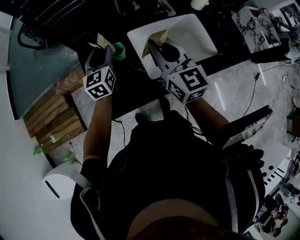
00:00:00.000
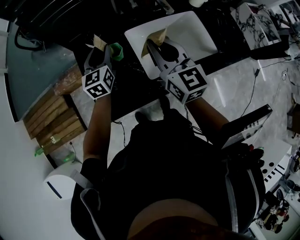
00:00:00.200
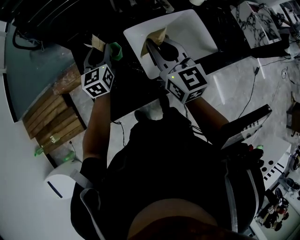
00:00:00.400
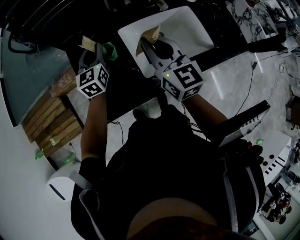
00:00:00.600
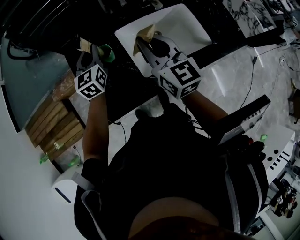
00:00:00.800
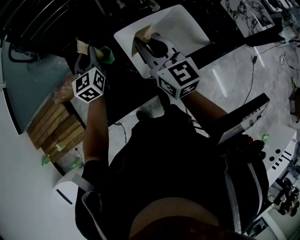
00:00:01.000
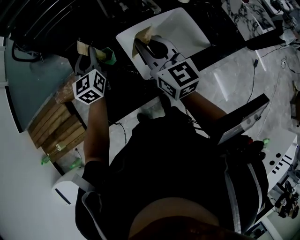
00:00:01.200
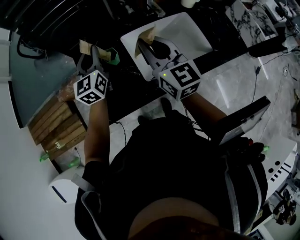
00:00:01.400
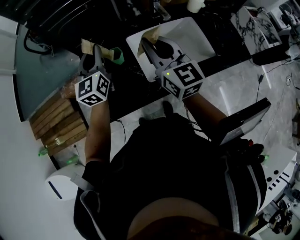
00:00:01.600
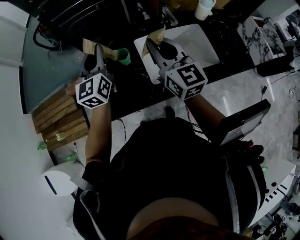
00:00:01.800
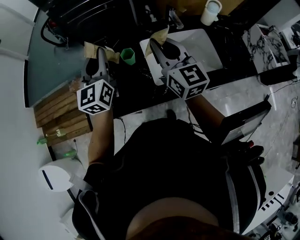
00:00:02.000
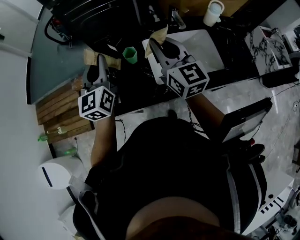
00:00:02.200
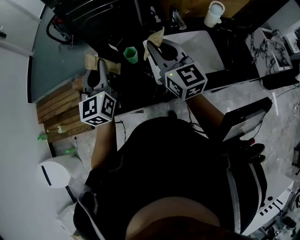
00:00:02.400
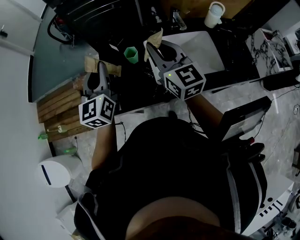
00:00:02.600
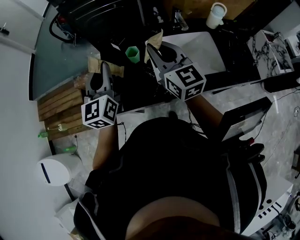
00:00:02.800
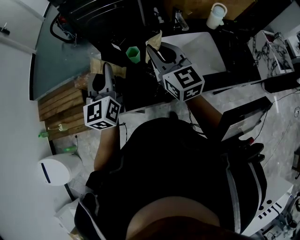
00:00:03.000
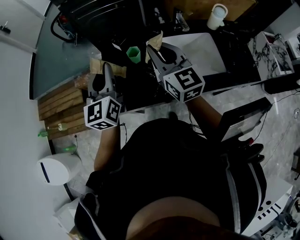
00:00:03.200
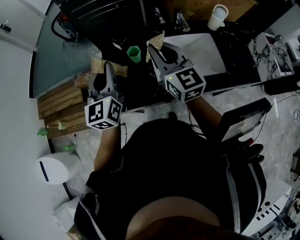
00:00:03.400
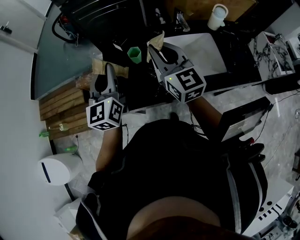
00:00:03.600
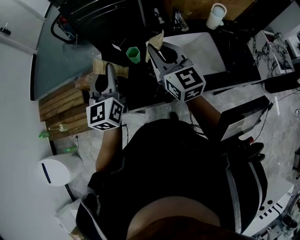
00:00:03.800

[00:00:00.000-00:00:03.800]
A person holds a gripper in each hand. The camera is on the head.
00:00:00.000 to 00:00:01.200: The left gripper closes up.
00:00:01.200 to 00:00:02.600: The right gripper changes place by approximately 5 cm. The left gripper moves backward, upward and to the left, some 20 cm.
00:00:02.600 to 00:00:03.800: There are only small adjustments of the grippers.

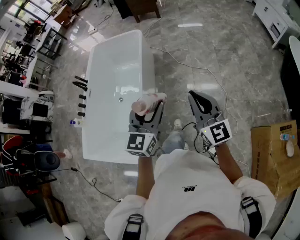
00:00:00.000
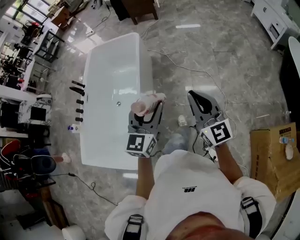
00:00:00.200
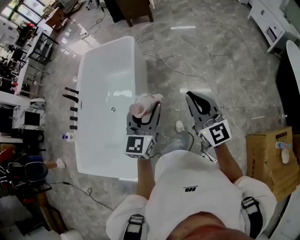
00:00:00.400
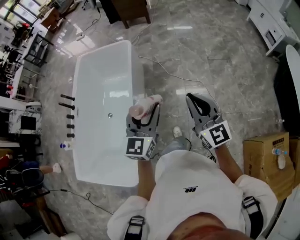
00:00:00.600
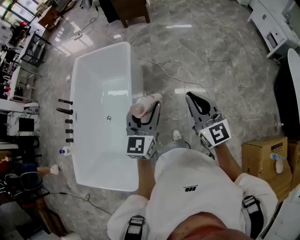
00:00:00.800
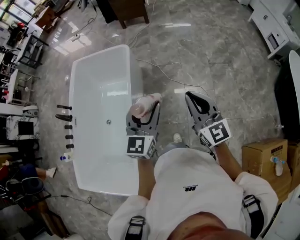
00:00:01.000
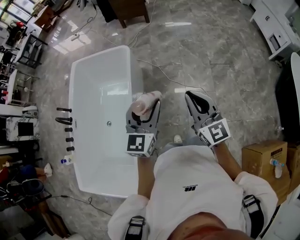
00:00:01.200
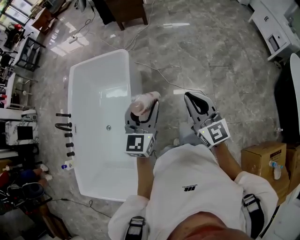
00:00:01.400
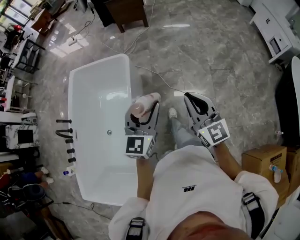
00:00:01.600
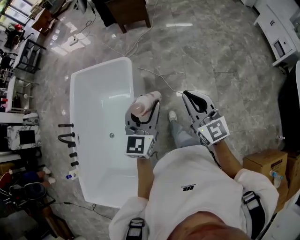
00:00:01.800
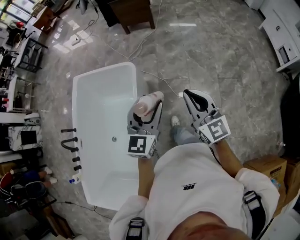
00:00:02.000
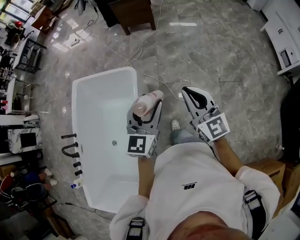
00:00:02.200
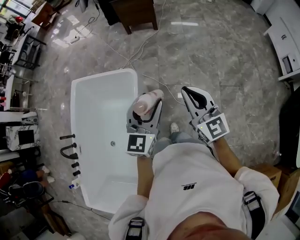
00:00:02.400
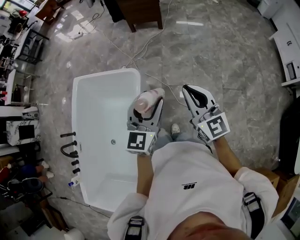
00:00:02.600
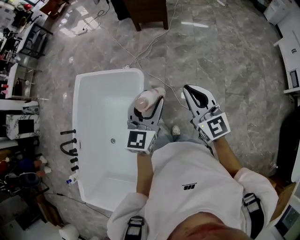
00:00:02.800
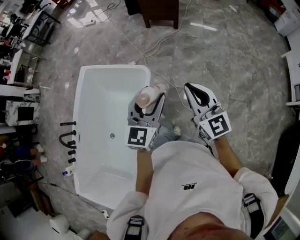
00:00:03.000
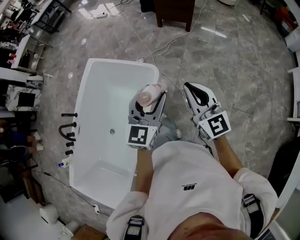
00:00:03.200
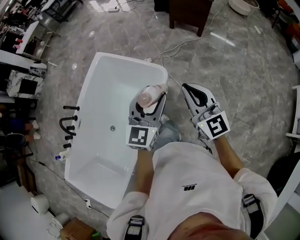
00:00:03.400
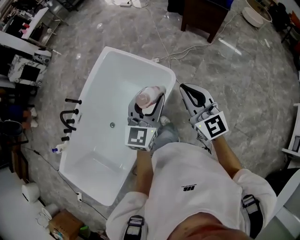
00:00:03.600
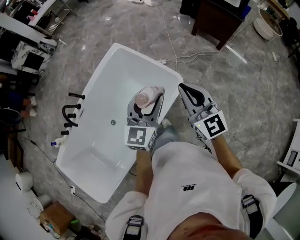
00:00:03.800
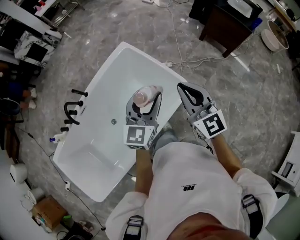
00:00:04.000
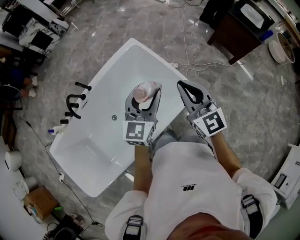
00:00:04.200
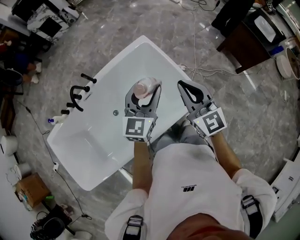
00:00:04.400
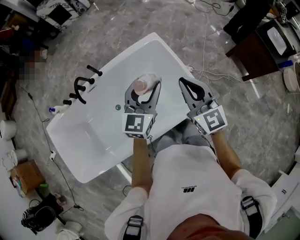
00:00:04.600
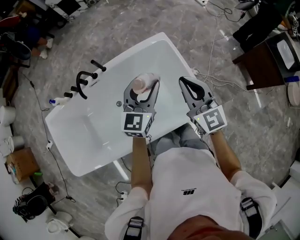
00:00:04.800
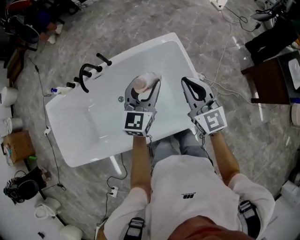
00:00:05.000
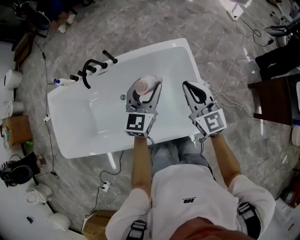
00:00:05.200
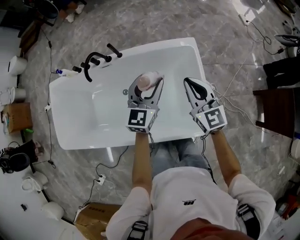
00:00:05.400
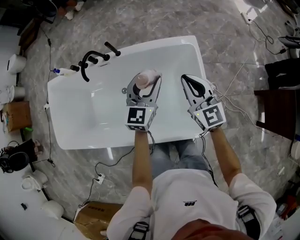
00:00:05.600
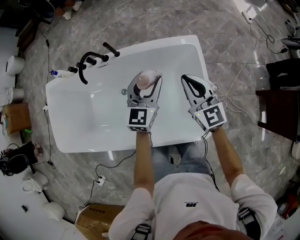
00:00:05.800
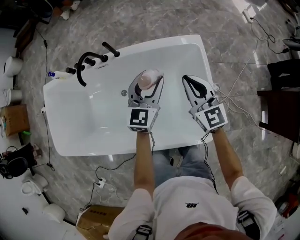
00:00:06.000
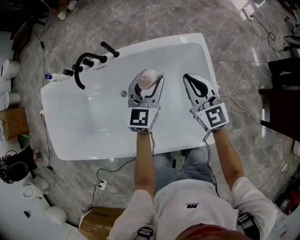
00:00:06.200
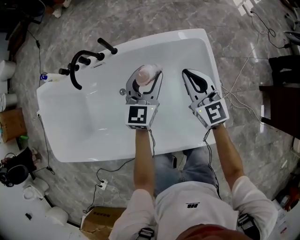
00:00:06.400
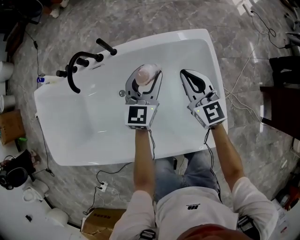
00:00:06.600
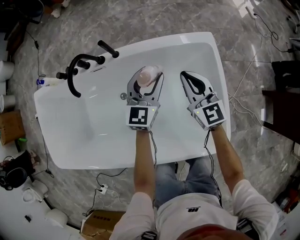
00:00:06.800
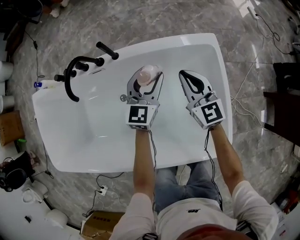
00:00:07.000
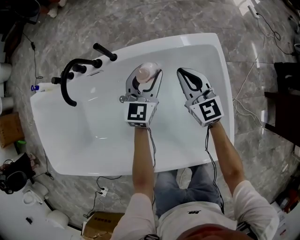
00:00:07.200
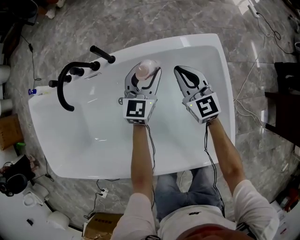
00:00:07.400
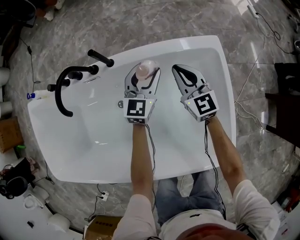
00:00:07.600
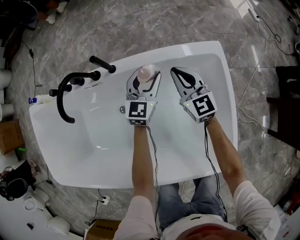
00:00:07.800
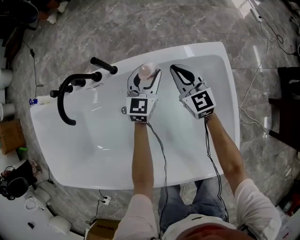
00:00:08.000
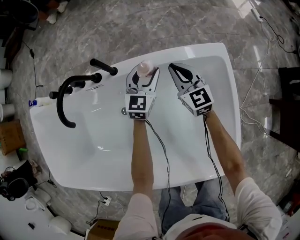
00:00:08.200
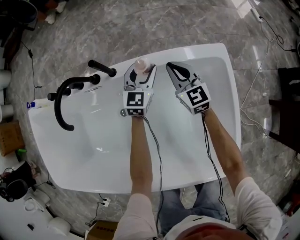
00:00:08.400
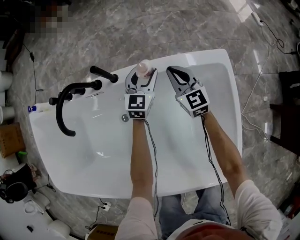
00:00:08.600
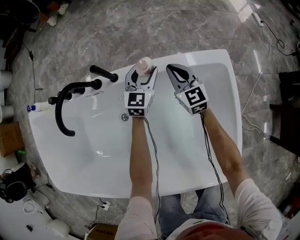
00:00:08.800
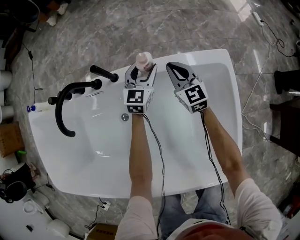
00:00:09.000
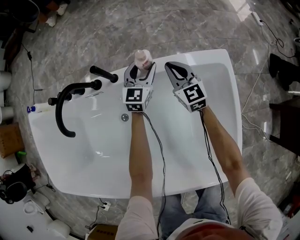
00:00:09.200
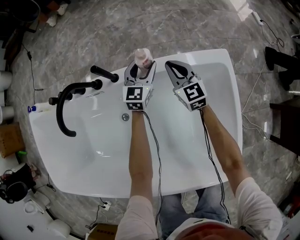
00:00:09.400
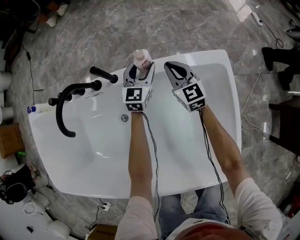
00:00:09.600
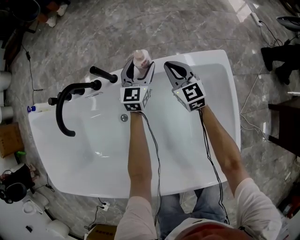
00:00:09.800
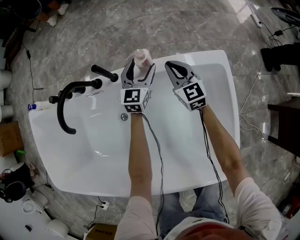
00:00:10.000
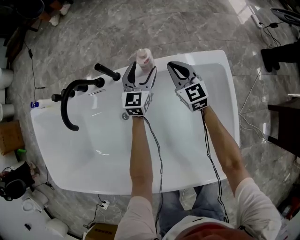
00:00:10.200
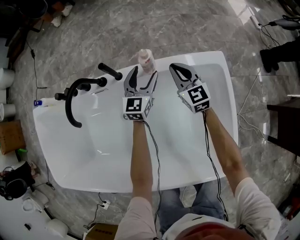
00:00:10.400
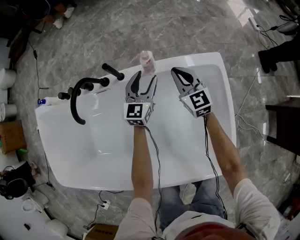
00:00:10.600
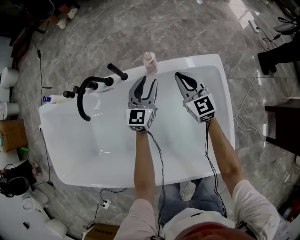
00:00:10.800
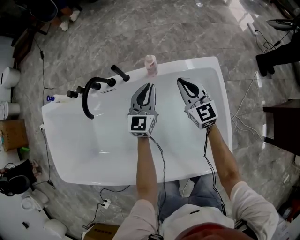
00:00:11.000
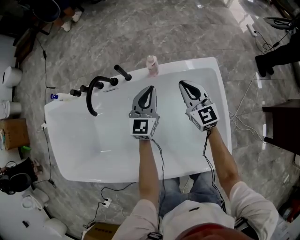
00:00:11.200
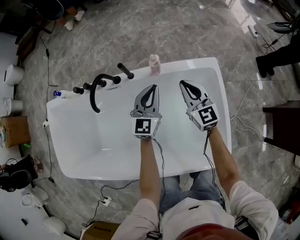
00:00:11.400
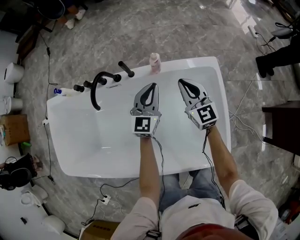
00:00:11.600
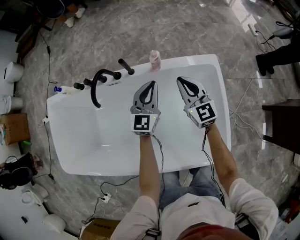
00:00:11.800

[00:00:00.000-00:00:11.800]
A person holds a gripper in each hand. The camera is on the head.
00:00:00.000 to 00:00:01.400: Both grippers are carried forward, some 40 cm.
00:00:01.400 to 00:00:03.000: The two grippers travel together, forward, about 40 cm.
00:00:03.000 to 00:00:04.400: Both grippers are carried some 40 cm. The left gripper changes its angle by some 40 degrees. The right gripper turns by some 40 degrees.
00:00:04.400 to 00:00:06.000: The left gripper moves some 30 cm, and swivels some 30 degrees. The right gripper changes place by approximately 30 cm, and changes its angle by about 30 degrees.
00:00:06.000 to 00:00:07.400: The right gripper heads downward, forward and to the left, covering about 25 cm. Meanwhile the left gripper shifts about 25 cm downward and forward.
00:00:07.400 to 00:00:08.800: The two grippers go some 15 cm forward and downward.
00:00:08.800 to 00:00:10.400: The two grippers go about 5 cm upward.
00:00:10.400 to 00:00:11.800: The two grippers go approximately 20 cm upward and backward. The left gripper closes its fingers.

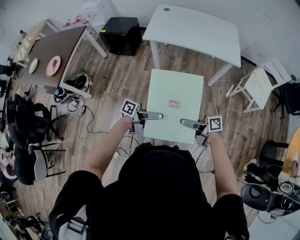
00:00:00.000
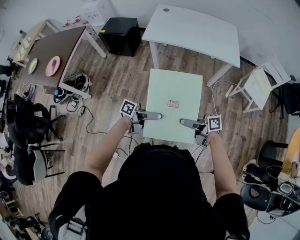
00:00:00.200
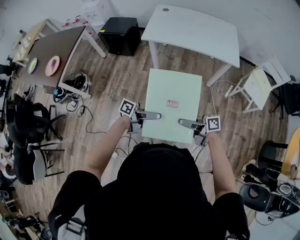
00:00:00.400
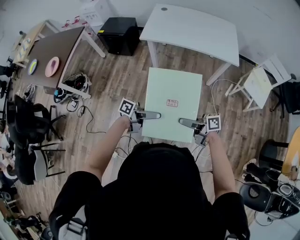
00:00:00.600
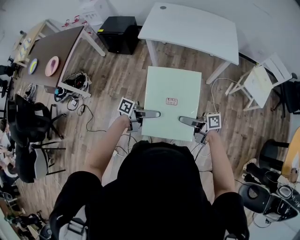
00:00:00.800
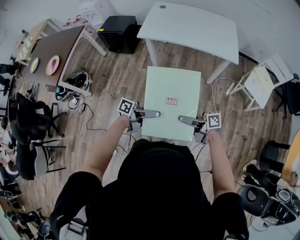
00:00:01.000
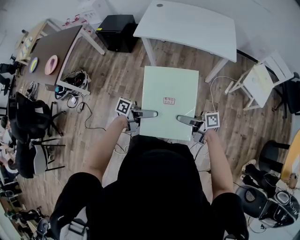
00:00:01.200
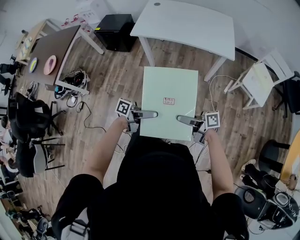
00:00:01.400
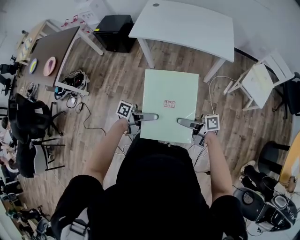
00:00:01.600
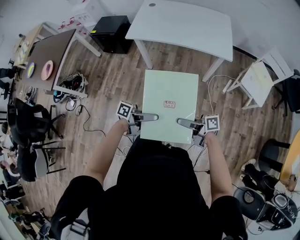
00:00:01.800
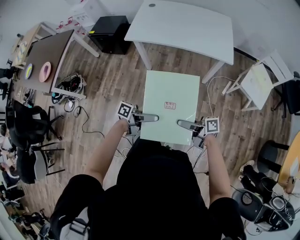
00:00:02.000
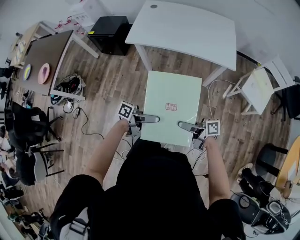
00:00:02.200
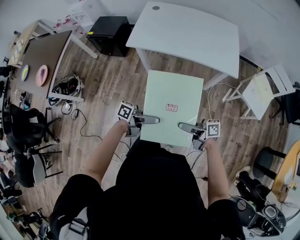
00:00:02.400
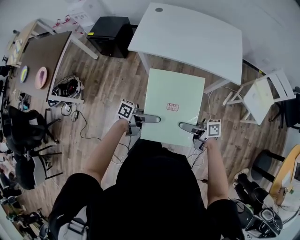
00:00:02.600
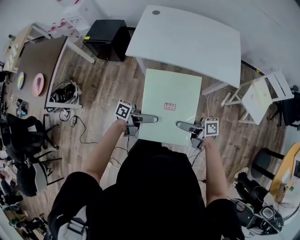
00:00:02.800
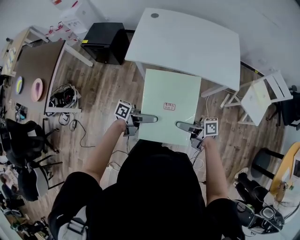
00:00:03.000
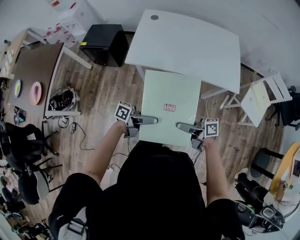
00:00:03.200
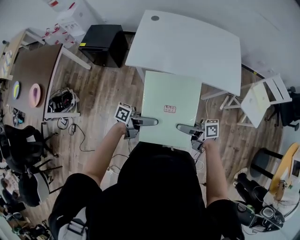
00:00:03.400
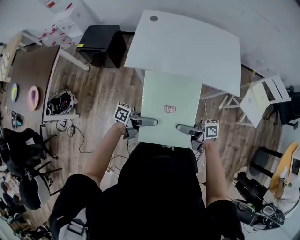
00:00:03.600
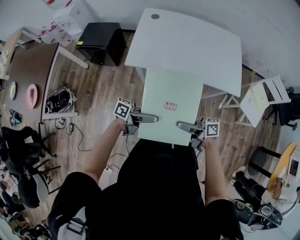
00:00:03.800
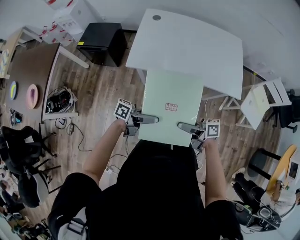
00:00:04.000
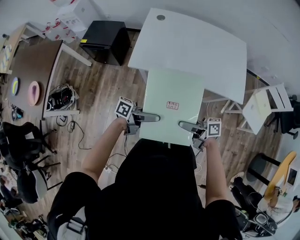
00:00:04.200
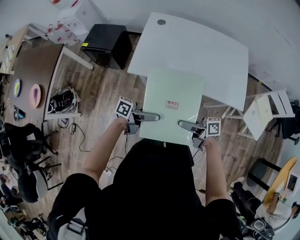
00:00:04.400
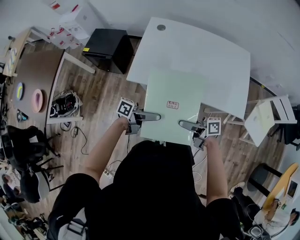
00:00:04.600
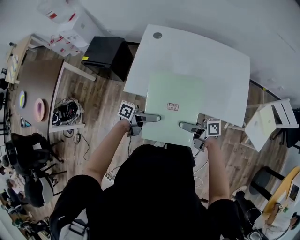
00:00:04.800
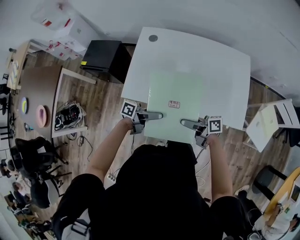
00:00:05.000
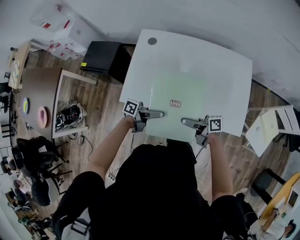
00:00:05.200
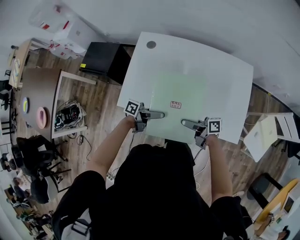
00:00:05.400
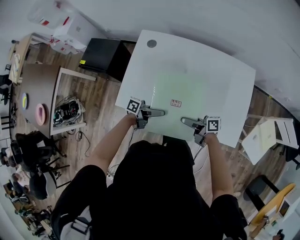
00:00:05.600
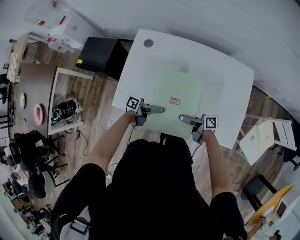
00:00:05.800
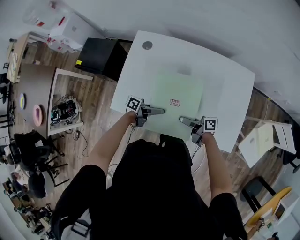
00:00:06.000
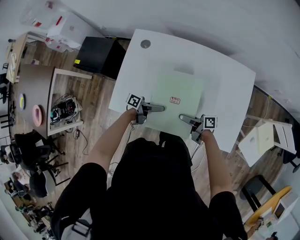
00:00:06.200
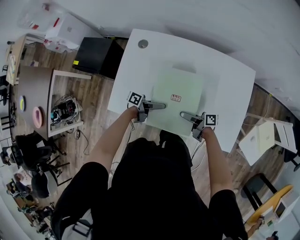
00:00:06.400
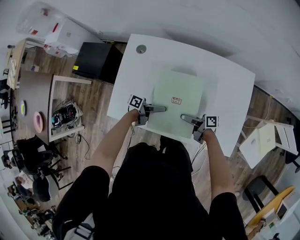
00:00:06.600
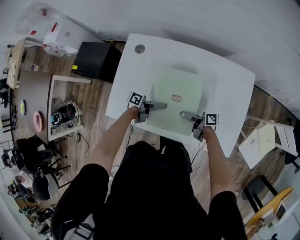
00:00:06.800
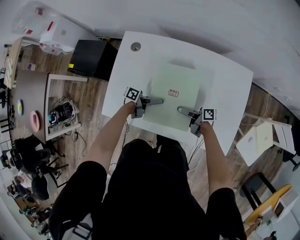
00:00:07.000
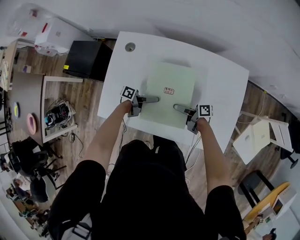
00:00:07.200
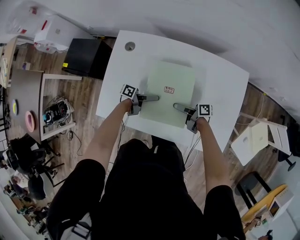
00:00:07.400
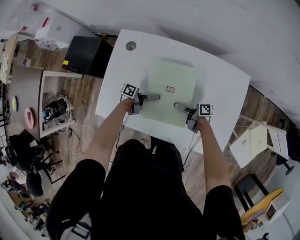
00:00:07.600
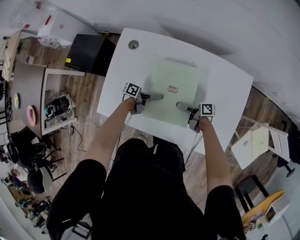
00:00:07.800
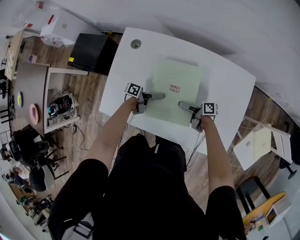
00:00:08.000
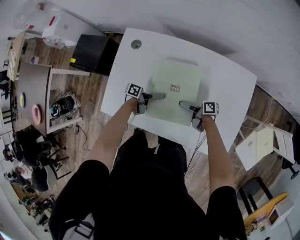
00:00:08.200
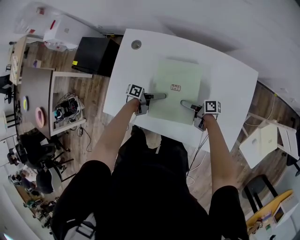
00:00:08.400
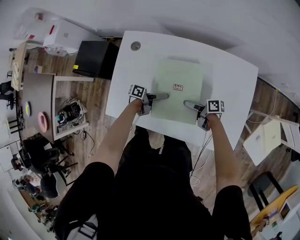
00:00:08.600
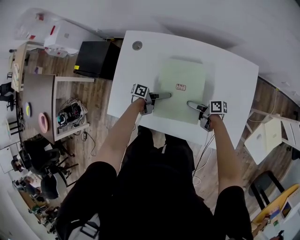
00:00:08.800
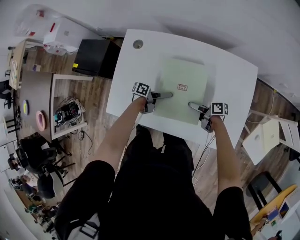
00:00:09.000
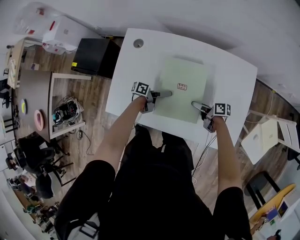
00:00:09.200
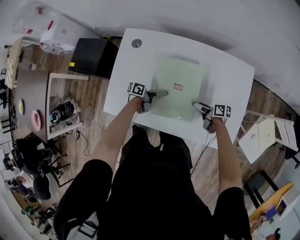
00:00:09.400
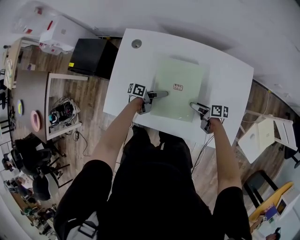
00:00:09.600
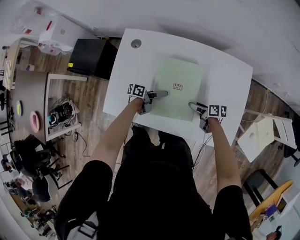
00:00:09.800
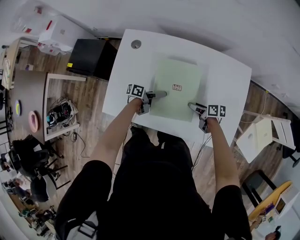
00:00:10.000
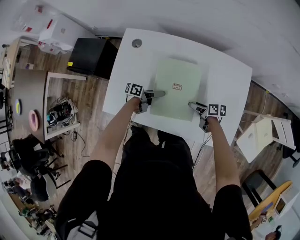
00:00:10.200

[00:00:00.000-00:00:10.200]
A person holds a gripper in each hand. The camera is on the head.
00:00:00.000 to 00:00:01.400: The right gripper changes place by approximately 10 cm.
00:00:01.400 to 00:00:03.000: The right gripper moves roughly 25 cm.
00:00:03.000 to 00:00:04.400: The right gripper changes place by approximately 15 cm.
00:00:04.400 to 00:00:05.800: The right gripper changes place by about 30 cm.
00:00:05.800 to 00:00:07.200: The right gripper changes place by approximately 15 cm.
